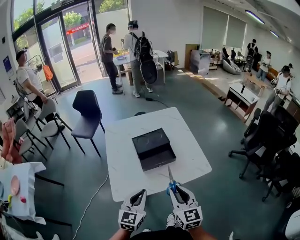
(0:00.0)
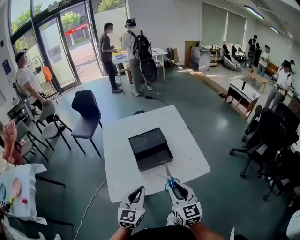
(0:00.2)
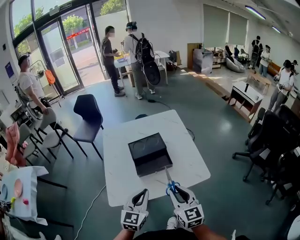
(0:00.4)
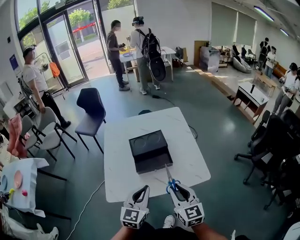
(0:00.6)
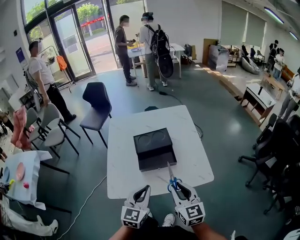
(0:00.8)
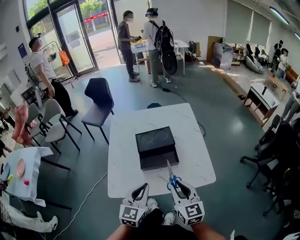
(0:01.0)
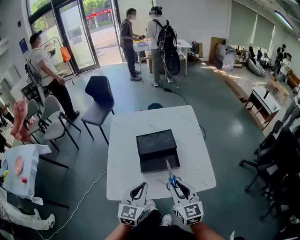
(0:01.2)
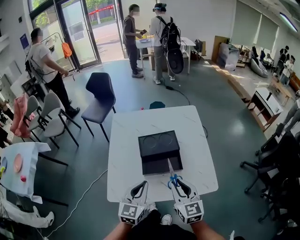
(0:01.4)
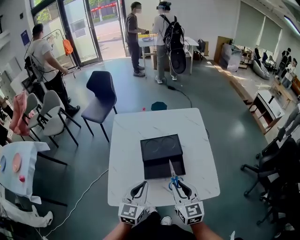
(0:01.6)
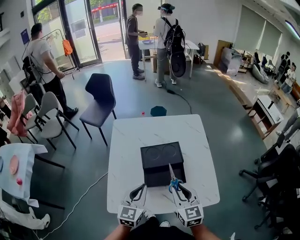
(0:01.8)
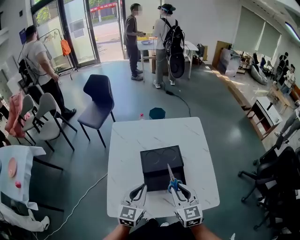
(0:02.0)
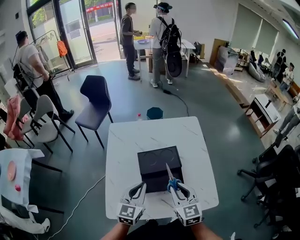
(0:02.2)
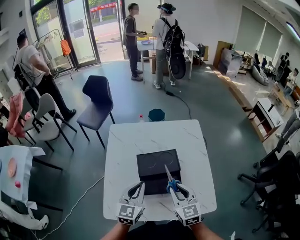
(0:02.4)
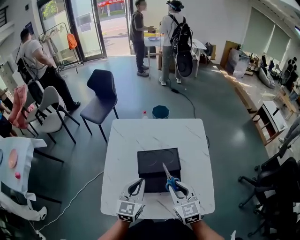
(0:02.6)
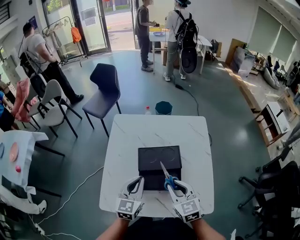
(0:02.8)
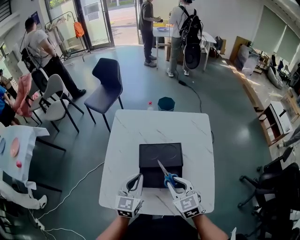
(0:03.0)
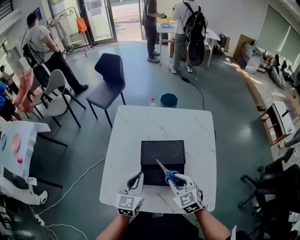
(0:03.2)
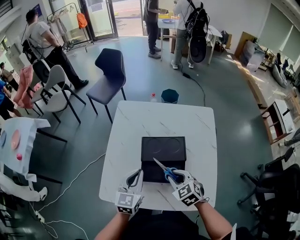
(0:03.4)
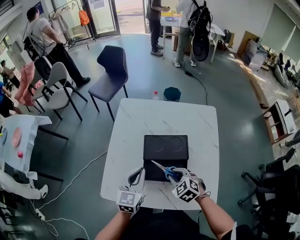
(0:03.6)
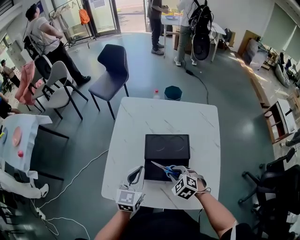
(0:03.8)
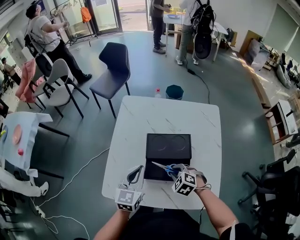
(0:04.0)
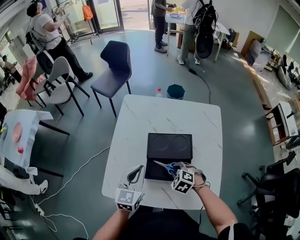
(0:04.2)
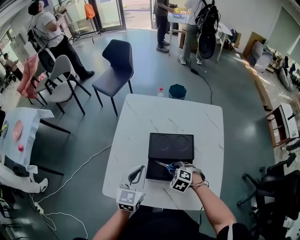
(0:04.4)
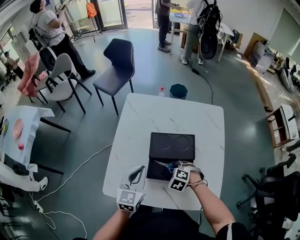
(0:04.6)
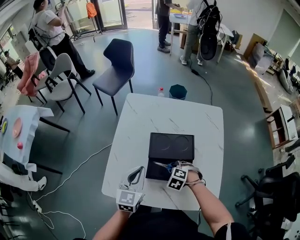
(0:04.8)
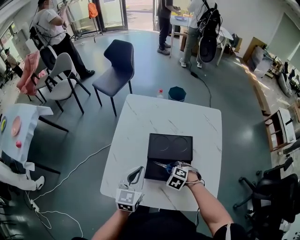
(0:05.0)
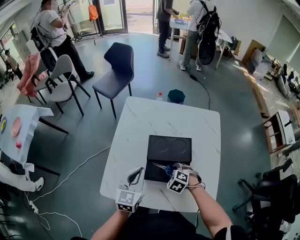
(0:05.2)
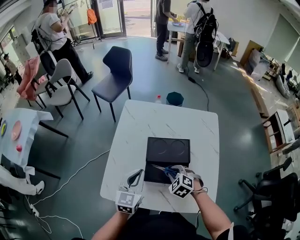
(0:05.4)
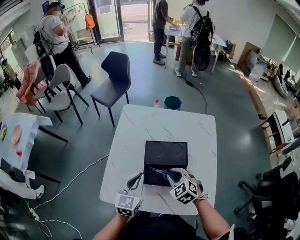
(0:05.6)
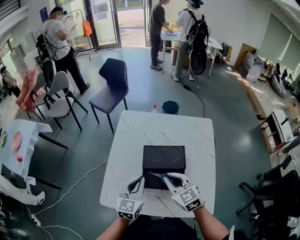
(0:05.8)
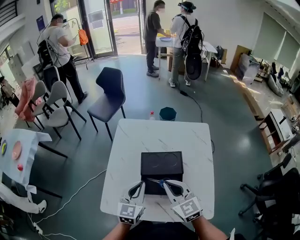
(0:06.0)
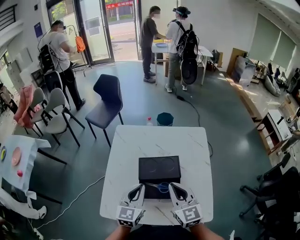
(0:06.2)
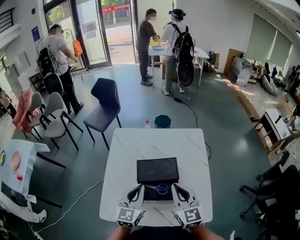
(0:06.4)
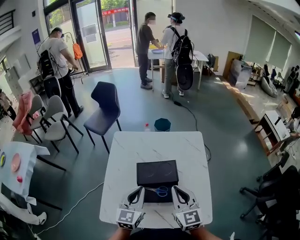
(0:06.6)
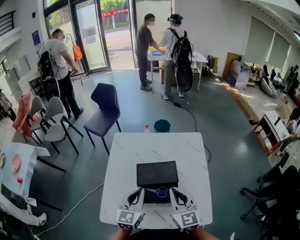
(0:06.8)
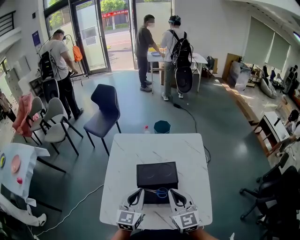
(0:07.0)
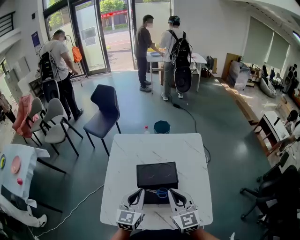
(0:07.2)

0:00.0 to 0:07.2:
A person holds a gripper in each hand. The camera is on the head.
0:00.0 to 0:01.4: The grippers both shift forward by approximately 15 cm.
0:01.4 to 0:02.8: Both grippers move forward, some 10 cm.
0:02.8 to 0:04.4: The right gripper goes some 20 cm downward, and points its fingers about 40 degrees further downward.
0:04.4 to 0:05.8: The right gripper goes some 20 cm upward, and tips its fingers upward by about 40 degrees.
0:05.8 to 0:07.2: The right gripper moves upward and to the right, some 10 cm, and changes its angle by about 30 degrees.

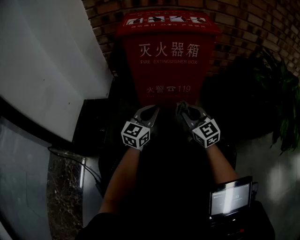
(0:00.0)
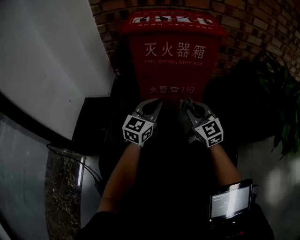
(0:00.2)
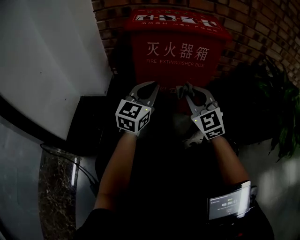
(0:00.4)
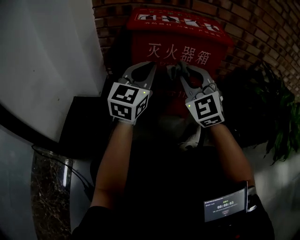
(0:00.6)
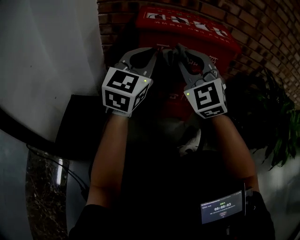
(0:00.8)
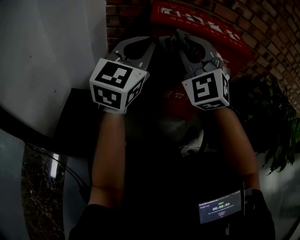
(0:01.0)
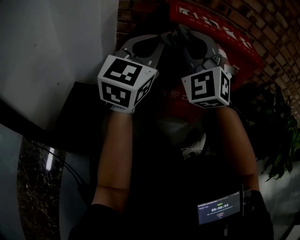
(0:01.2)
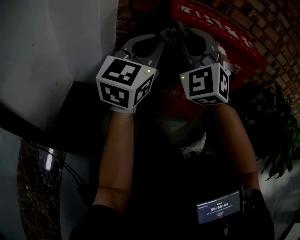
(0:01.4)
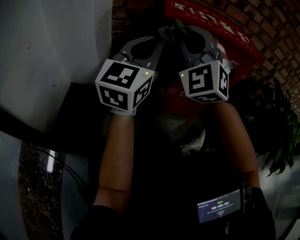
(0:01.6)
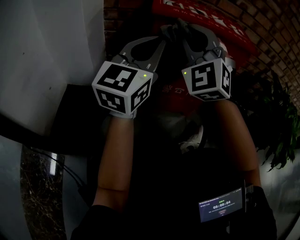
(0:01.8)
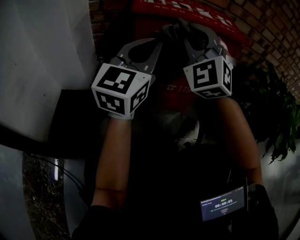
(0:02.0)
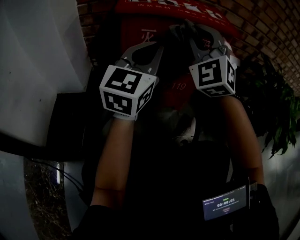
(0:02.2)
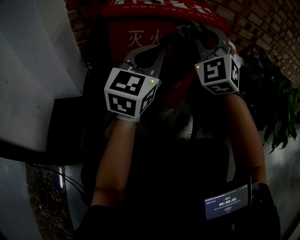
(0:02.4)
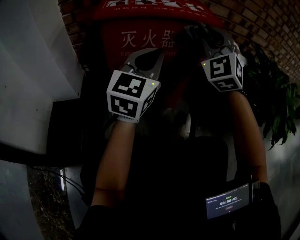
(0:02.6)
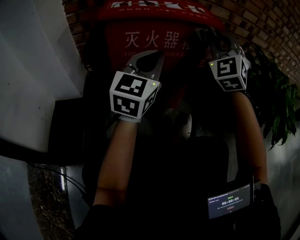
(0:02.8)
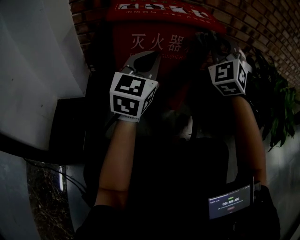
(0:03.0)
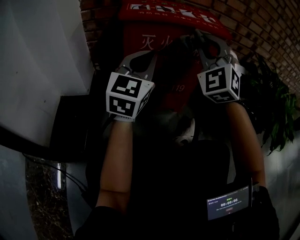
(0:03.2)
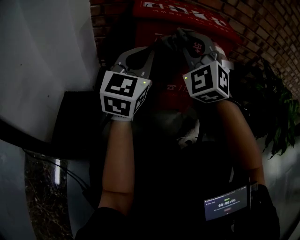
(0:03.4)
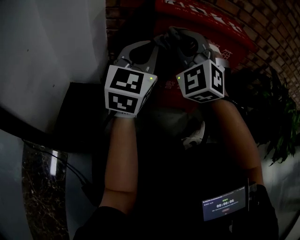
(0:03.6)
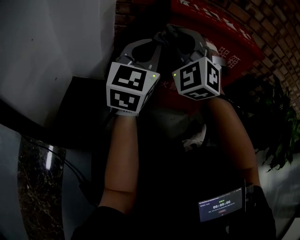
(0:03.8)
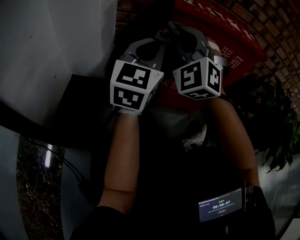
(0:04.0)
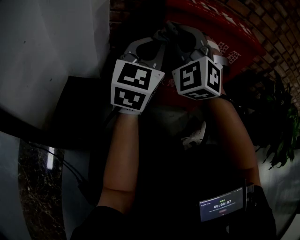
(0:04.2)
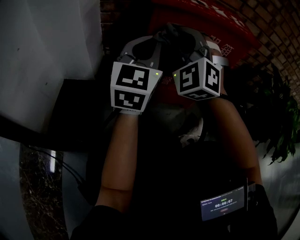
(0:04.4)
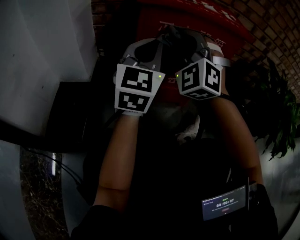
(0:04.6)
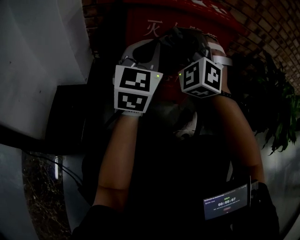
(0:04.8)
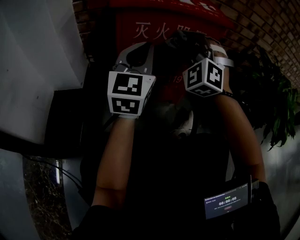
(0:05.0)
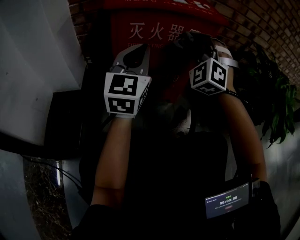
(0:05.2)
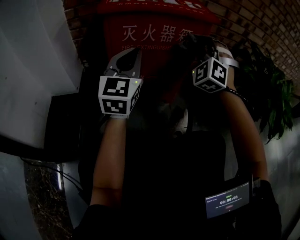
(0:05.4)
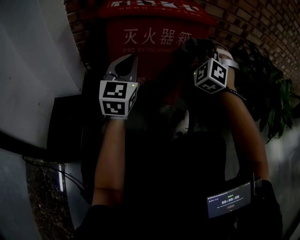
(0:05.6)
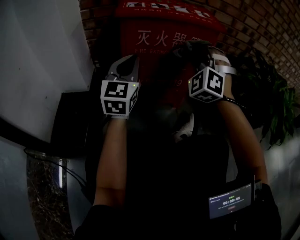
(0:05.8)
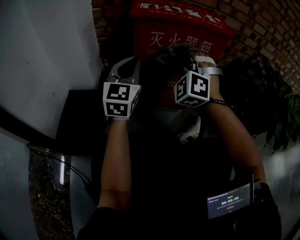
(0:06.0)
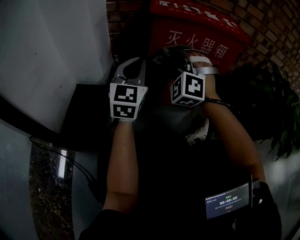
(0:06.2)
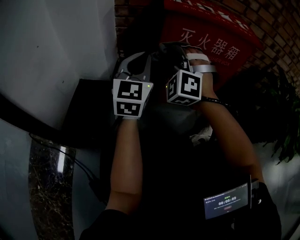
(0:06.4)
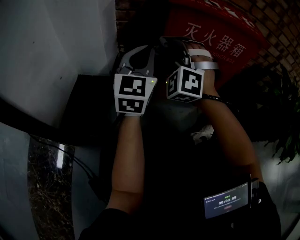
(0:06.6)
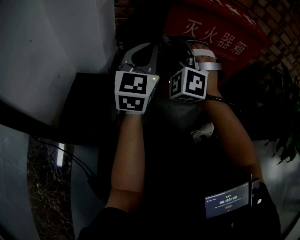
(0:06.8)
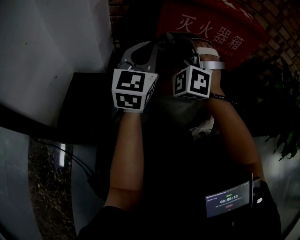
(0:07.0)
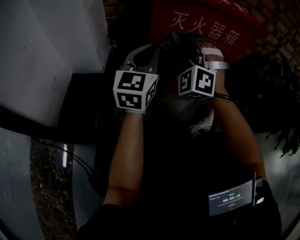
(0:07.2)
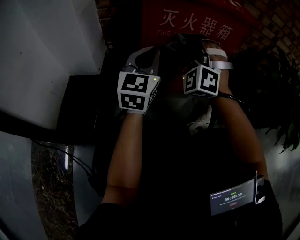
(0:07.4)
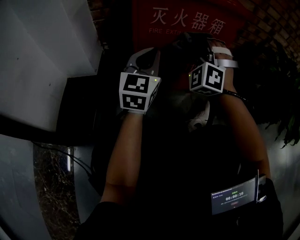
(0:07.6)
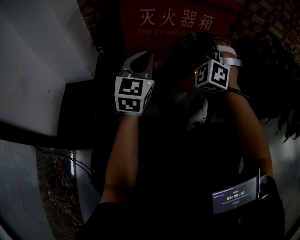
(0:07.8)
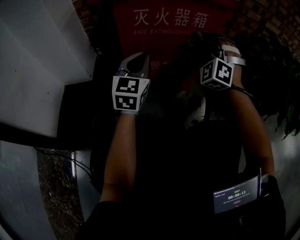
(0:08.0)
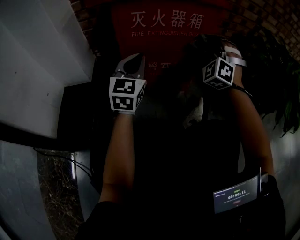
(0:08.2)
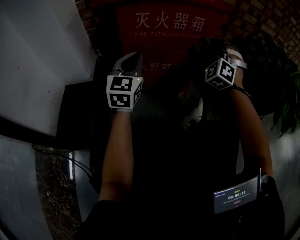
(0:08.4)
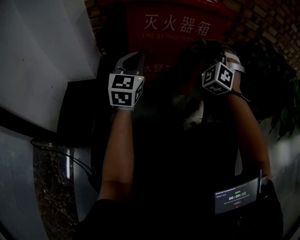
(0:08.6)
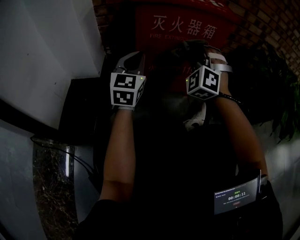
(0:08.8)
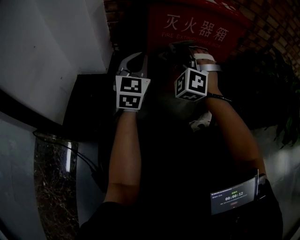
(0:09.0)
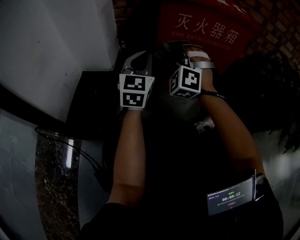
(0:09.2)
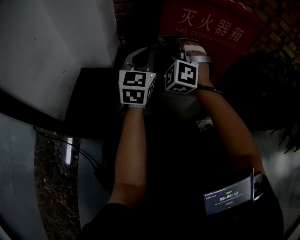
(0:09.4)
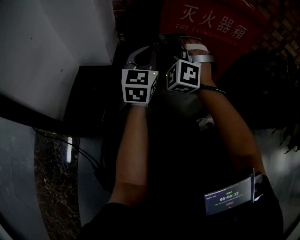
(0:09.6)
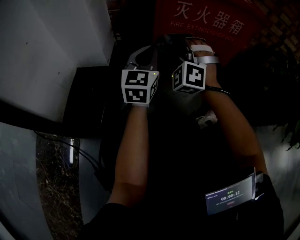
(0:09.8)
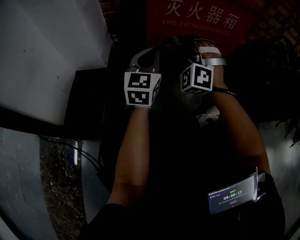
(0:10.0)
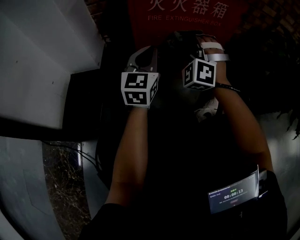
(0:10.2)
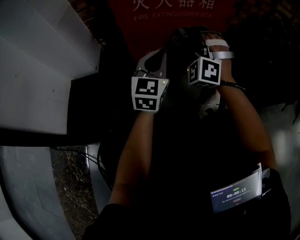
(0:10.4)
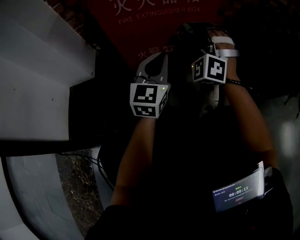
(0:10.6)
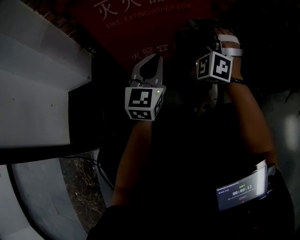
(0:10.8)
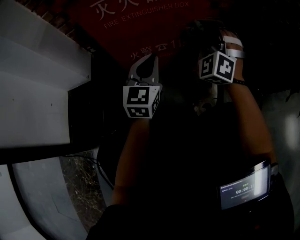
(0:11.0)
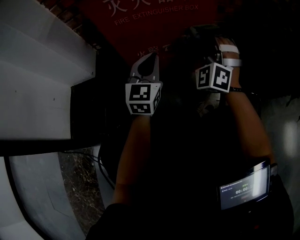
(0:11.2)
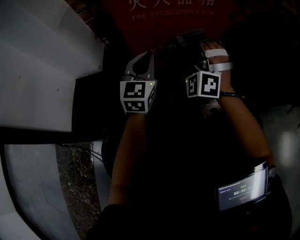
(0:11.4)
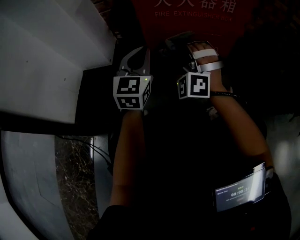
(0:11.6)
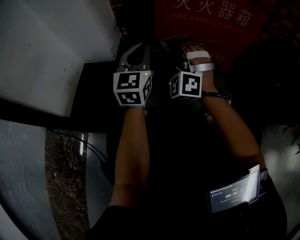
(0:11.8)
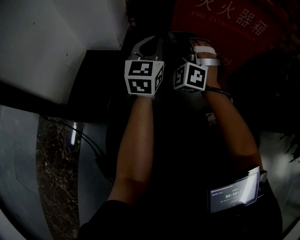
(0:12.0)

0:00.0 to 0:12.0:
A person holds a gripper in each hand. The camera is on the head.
0:00.0 to 0:01.6: The left gripper travels upward by approximately 20 cm.
0:01.6 to 0:03.0: The left gripper moves roughly 15 cm.
0:03.0 to 0:04.4: The left gripper changes place by some 10 cm.
0:06.0 to 0:07.6: The left gripper shifts by approximately 10 cm.
0:07.6 to 0:09.0: The left gripper changes place by some 10 cm.
0:09.0 to 0:10.4: The left gripper changes place by some 15 cm.
0:10.4 to 0:12.0: The left gripper moves about 15 cm.

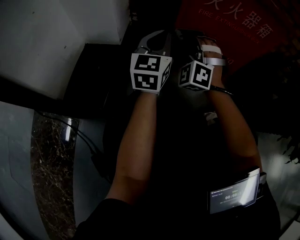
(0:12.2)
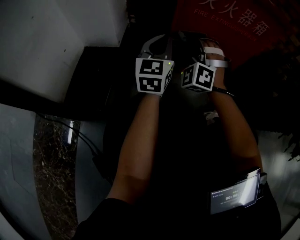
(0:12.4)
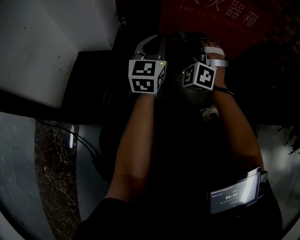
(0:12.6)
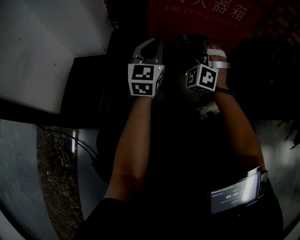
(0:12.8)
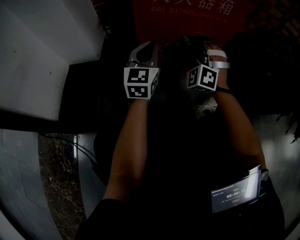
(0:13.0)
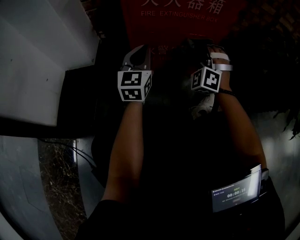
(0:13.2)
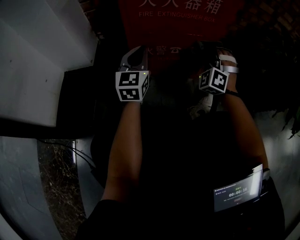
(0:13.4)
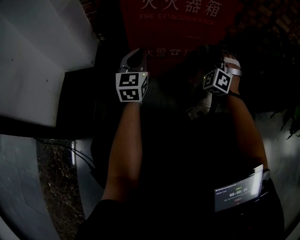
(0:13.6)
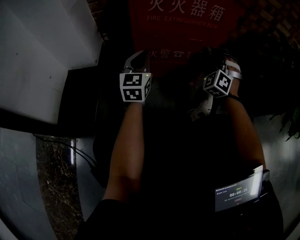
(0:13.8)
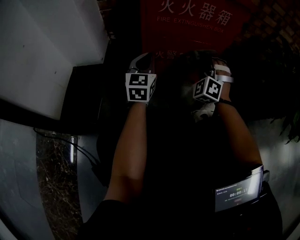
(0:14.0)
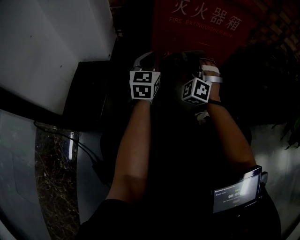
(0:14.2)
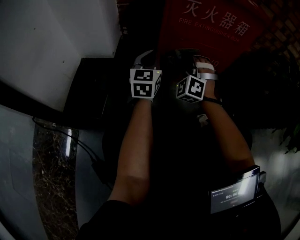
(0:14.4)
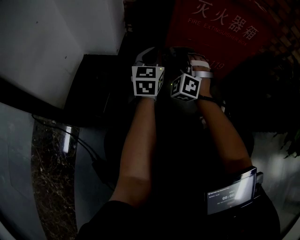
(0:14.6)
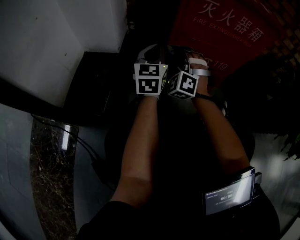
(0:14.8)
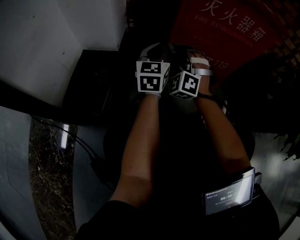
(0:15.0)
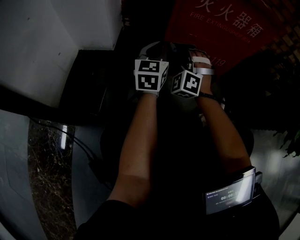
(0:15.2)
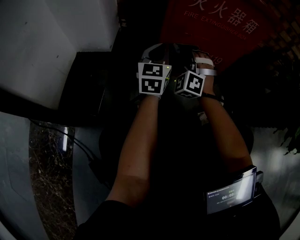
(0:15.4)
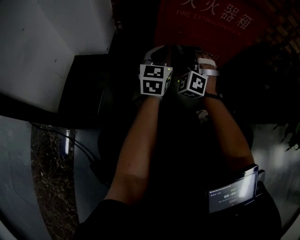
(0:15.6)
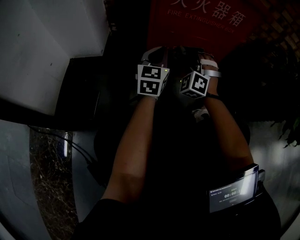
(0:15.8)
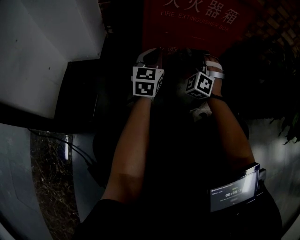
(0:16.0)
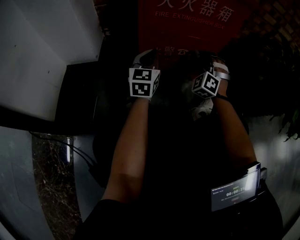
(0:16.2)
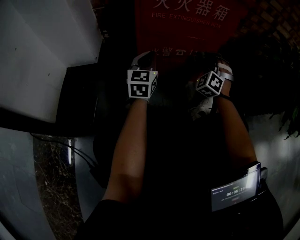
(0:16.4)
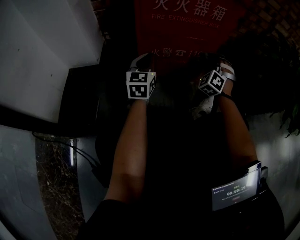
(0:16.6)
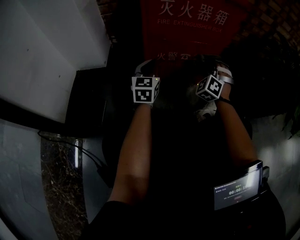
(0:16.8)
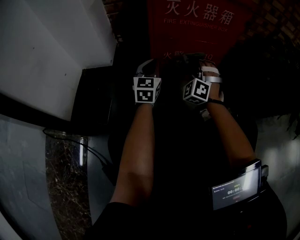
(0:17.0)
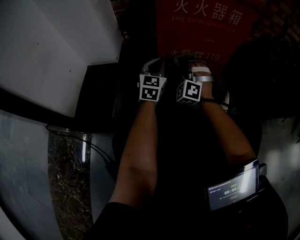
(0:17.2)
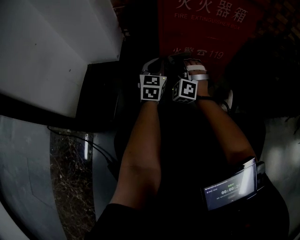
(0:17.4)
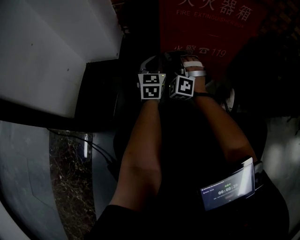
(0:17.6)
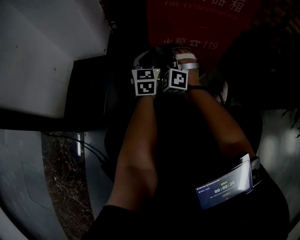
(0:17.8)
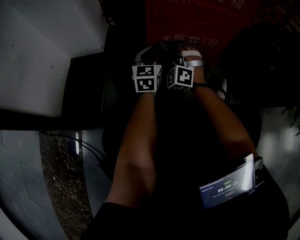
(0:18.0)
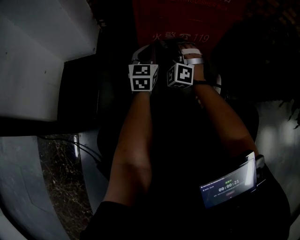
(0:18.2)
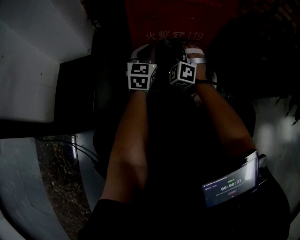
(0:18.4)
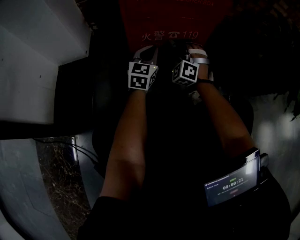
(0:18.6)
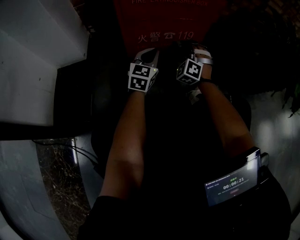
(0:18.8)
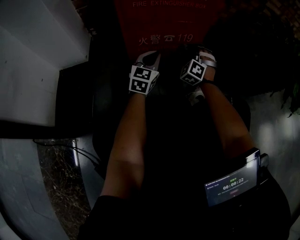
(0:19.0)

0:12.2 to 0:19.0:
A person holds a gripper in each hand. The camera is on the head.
0:12.2 to 0:13.6: The left gripper changes place by approximately 10 cm.
0:13.6 to 0:15.0: The left gripper shifts by roughly 5 cm.
0:15.0 to 0:16.2: The left gripper changes place by about 10 cm.
0:16.2 to 0:17.6: The left gripper moves roughly 10 cm.
0:17.6 to 0:19.0: The left gripper ends up approximately 15 cm from where it was, and changes its angle by some 30 degrees.
